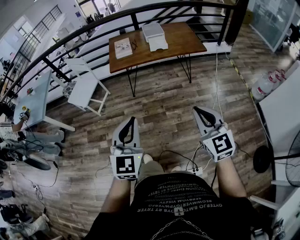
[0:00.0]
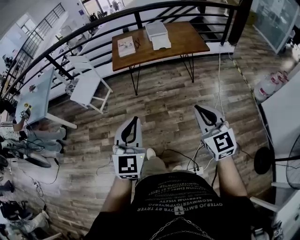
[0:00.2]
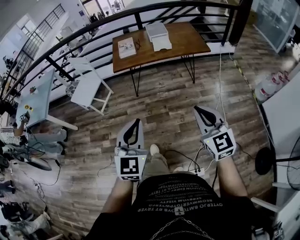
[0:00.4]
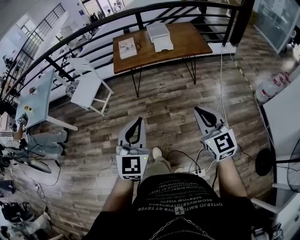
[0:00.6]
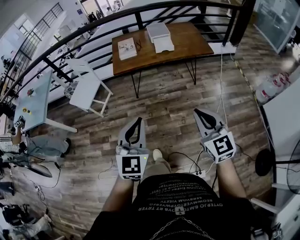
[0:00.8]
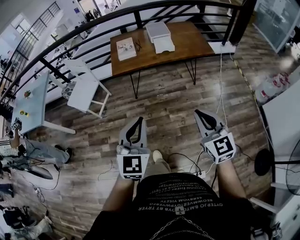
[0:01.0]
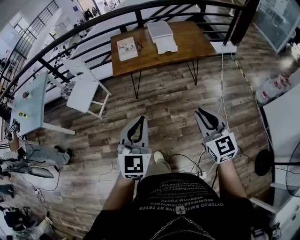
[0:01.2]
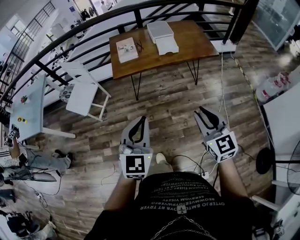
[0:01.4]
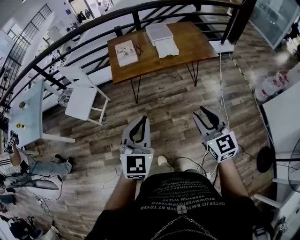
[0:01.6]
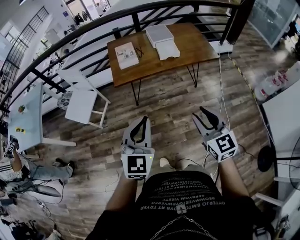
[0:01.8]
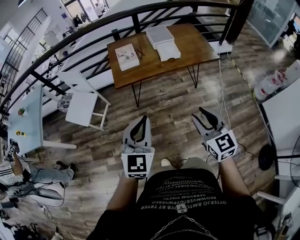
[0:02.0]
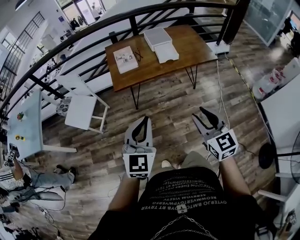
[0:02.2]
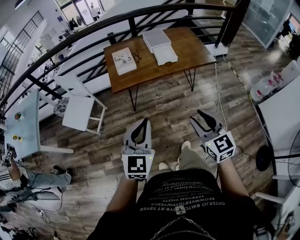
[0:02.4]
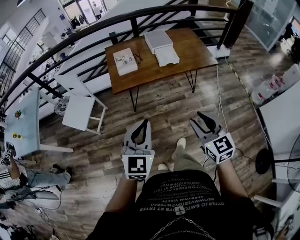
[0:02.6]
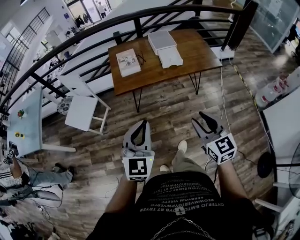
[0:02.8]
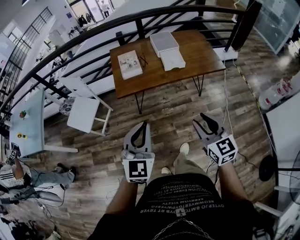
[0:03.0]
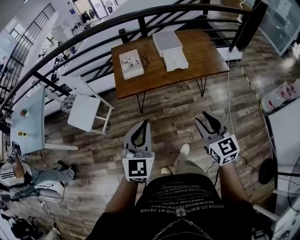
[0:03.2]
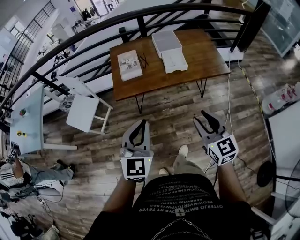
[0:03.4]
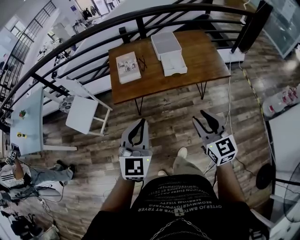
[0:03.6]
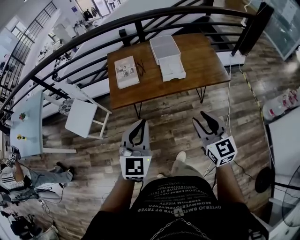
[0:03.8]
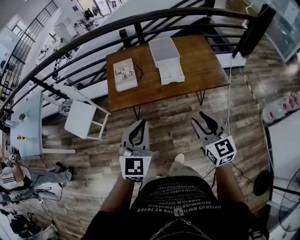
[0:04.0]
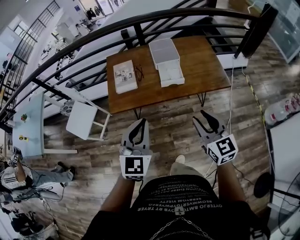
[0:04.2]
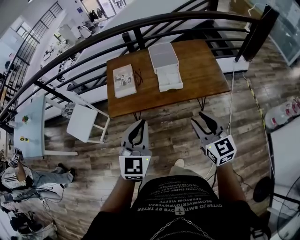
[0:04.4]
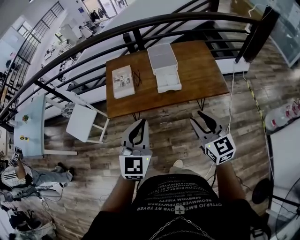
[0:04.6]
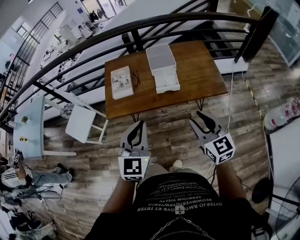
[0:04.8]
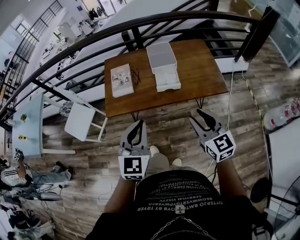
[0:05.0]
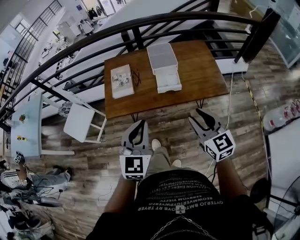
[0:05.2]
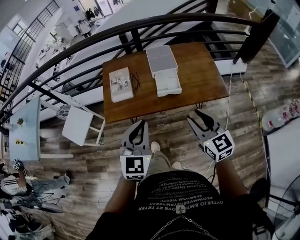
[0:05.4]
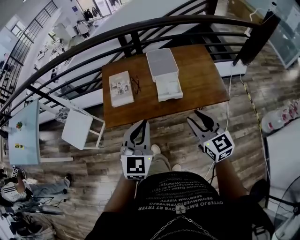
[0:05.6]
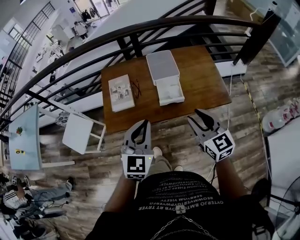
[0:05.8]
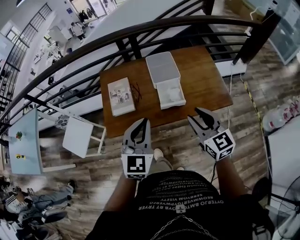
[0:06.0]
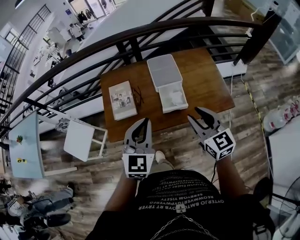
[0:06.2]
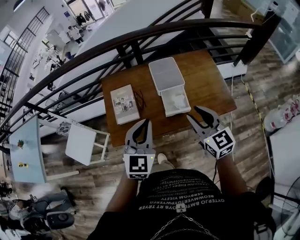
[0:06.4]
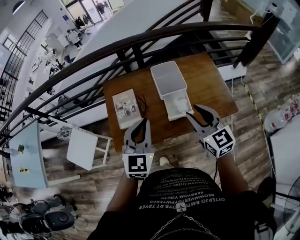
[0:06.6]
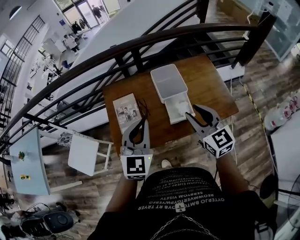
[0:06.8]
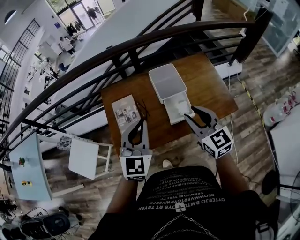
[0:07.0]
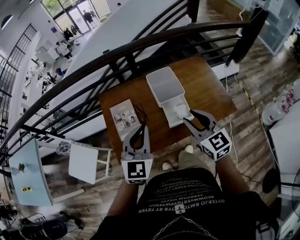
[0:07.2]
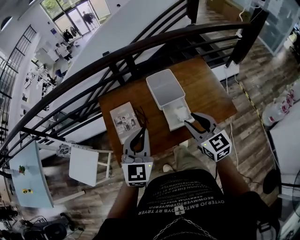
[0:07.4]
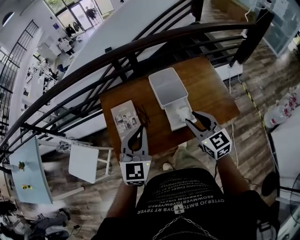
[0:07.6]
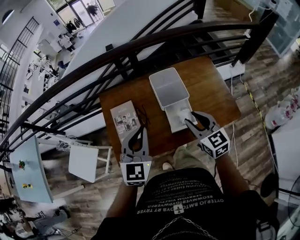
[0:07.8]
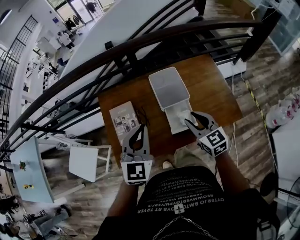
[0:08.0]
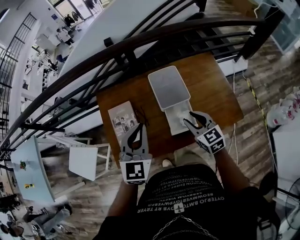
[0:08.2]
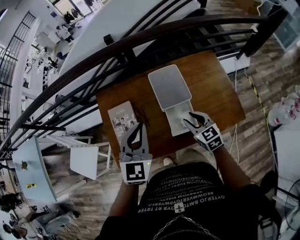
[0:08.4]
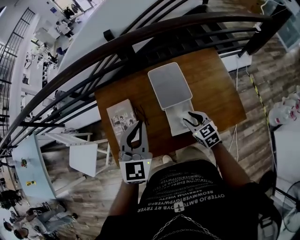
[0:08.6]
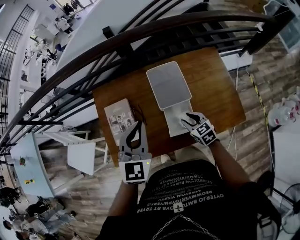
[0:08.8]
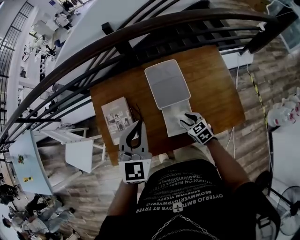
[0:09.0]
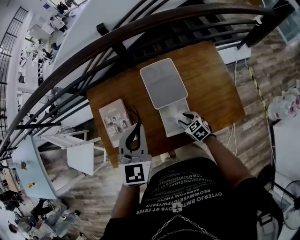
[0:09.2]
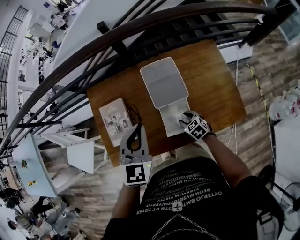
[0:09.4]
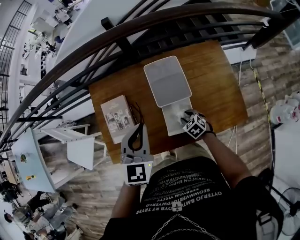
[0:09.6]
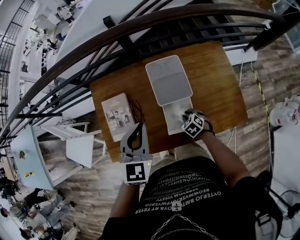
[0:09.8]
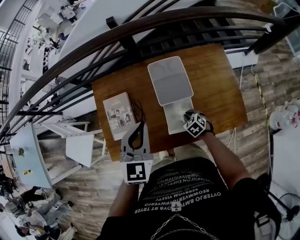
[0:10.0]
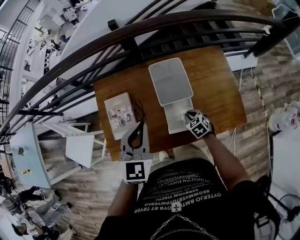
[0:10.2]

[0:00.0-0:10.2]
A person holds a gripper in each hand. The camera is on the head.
0:00.0 to 0:01.4: Both grippers travel together forward, roughly 20 cm.
0:01.4 to 0:03.0: The two grippers go approximately 15 cm forward.
0:03.0 to 0:04.4: Both grippers travel together forward and to the right, about 25 cm.
0:04.4 to 0:05.8: The grippers both shift forward by roughly 15 cm.
0:05.8 to 0:07.2: The left gripper heads forward, covering roughly 15 cm, while the right gripper is displaced forward and to the left by approximately 15 cm.
0:07.2 to 0:08.8: The left gripper shifts approximately 15 cm forward. The right gripper heads downward and forward, covering approximately 30 cm, and rotates approximately 30 degrees.
0:08.8 to 0:10.2: The right gripper travels downward by about 10 cm, and closes.

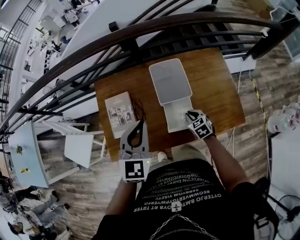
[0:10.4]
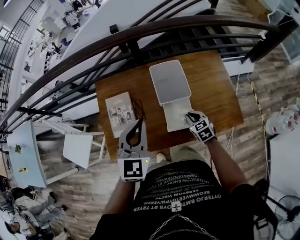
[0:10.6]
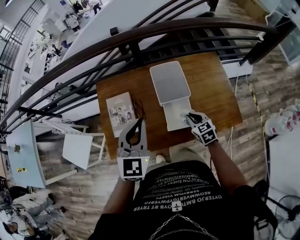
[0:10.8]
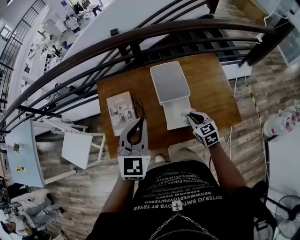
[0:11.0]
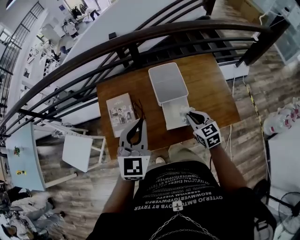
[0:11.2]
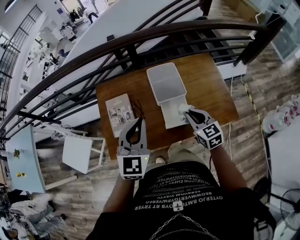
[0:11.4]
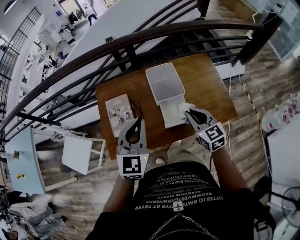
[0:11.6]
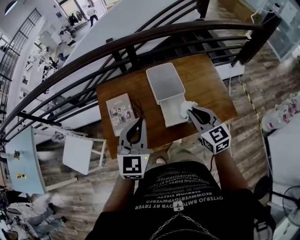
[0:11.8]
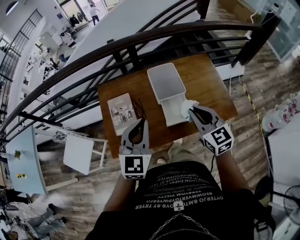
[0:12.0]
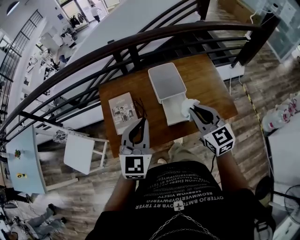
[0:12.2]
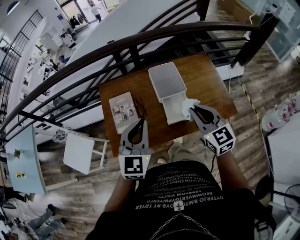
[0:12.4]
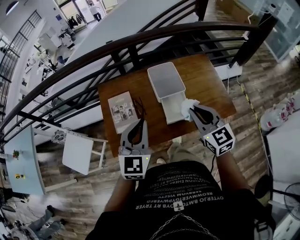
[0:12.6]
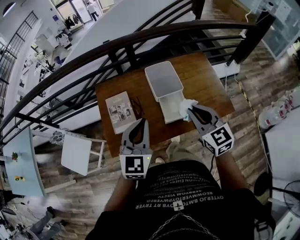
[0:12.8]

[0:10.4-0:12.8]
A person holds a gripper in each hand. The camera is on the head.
0:10.4 to 0:11.6: The right gripper is displaced upward by about 25 cm, and turns by roughly 30 degrees. Meanwhile the left gripper is displaced backward by some 10 cm.
0:11.6 to 0:12.8: The right gripper moves upward and backward, about 10 cm.

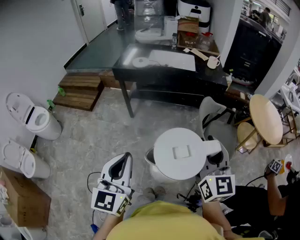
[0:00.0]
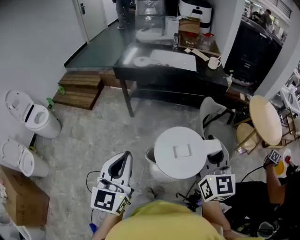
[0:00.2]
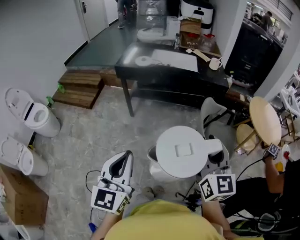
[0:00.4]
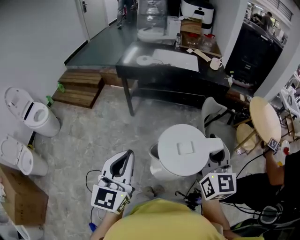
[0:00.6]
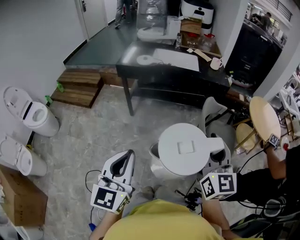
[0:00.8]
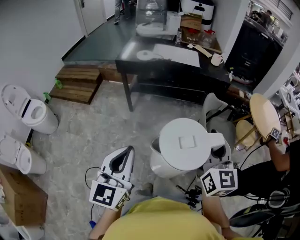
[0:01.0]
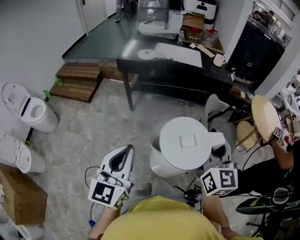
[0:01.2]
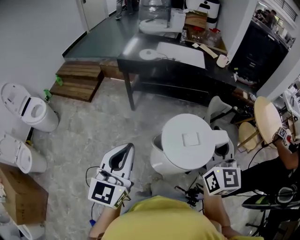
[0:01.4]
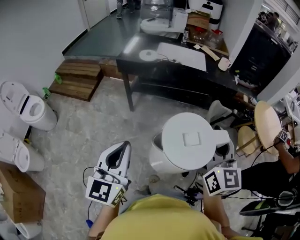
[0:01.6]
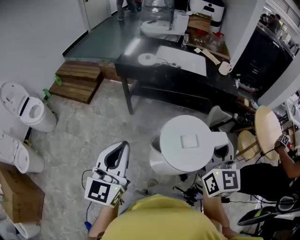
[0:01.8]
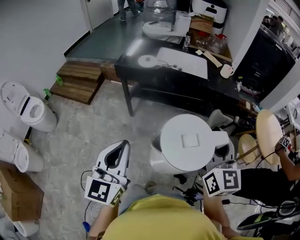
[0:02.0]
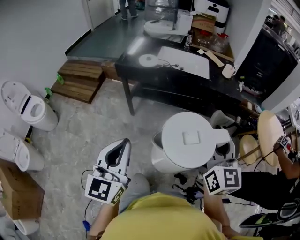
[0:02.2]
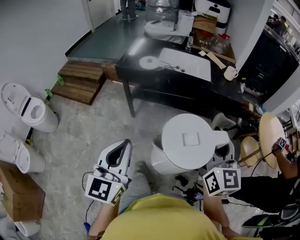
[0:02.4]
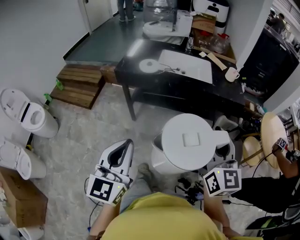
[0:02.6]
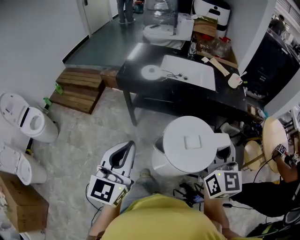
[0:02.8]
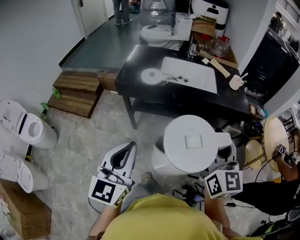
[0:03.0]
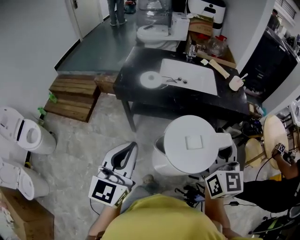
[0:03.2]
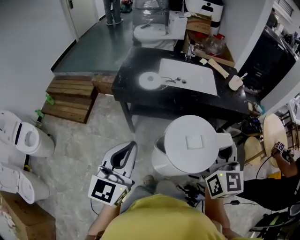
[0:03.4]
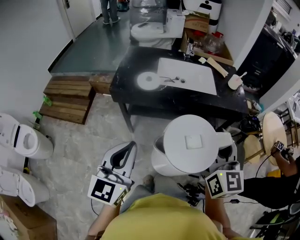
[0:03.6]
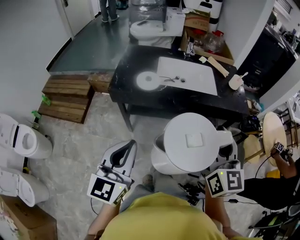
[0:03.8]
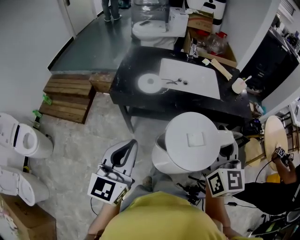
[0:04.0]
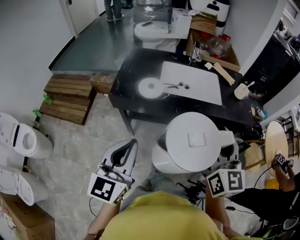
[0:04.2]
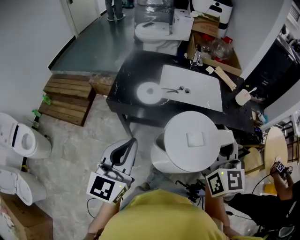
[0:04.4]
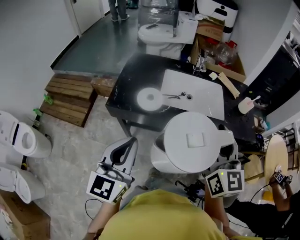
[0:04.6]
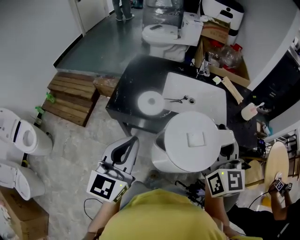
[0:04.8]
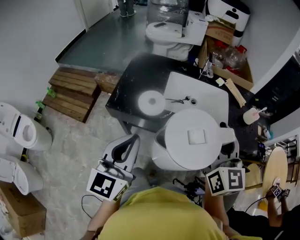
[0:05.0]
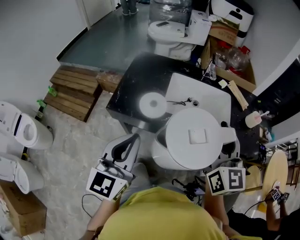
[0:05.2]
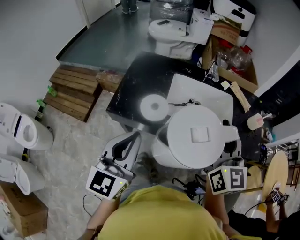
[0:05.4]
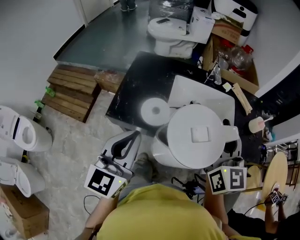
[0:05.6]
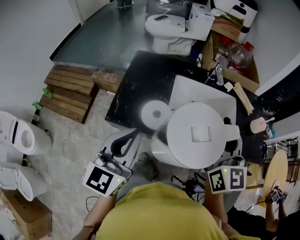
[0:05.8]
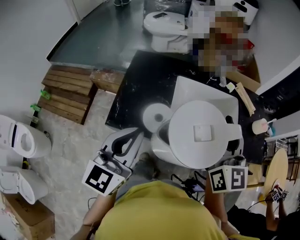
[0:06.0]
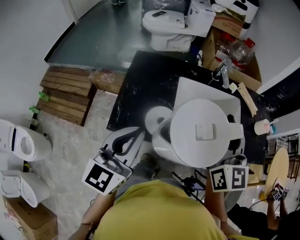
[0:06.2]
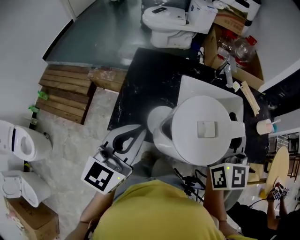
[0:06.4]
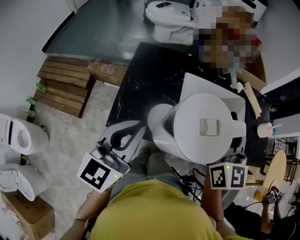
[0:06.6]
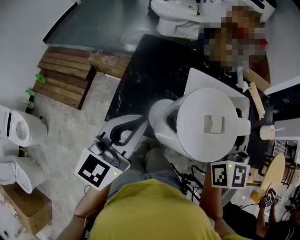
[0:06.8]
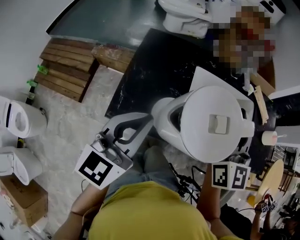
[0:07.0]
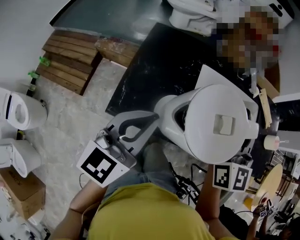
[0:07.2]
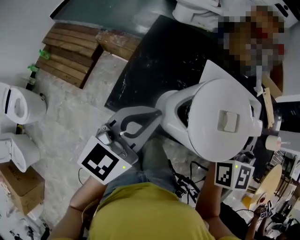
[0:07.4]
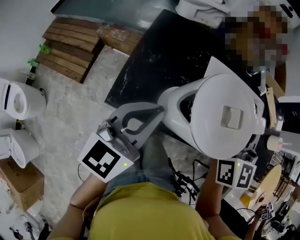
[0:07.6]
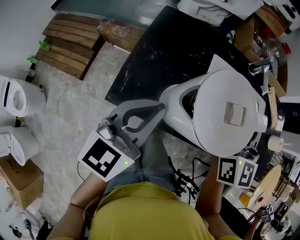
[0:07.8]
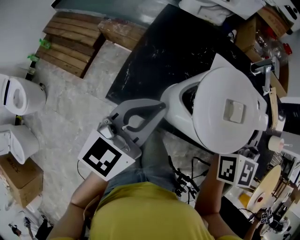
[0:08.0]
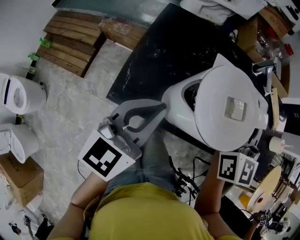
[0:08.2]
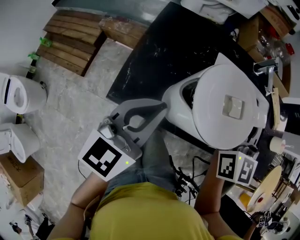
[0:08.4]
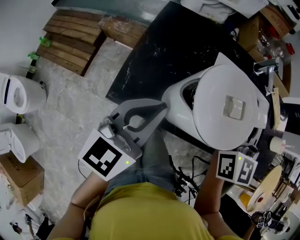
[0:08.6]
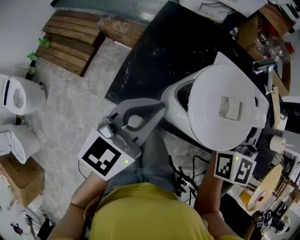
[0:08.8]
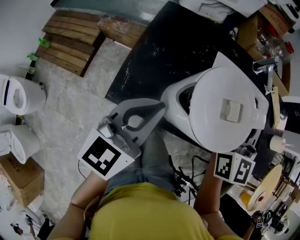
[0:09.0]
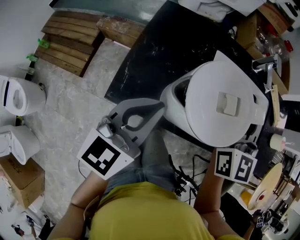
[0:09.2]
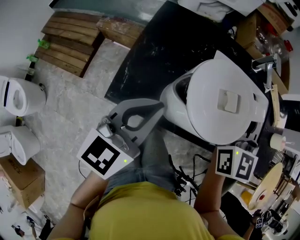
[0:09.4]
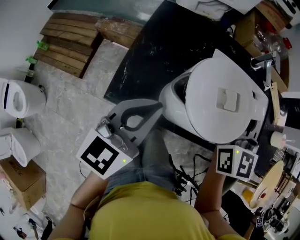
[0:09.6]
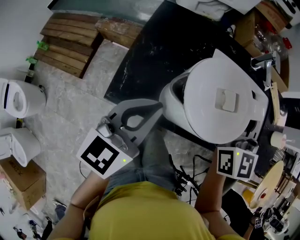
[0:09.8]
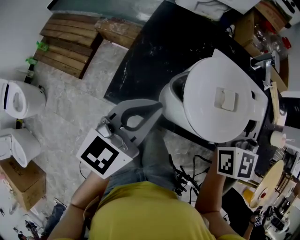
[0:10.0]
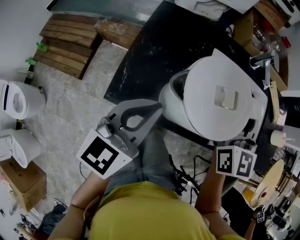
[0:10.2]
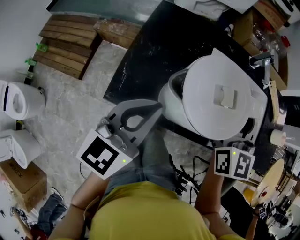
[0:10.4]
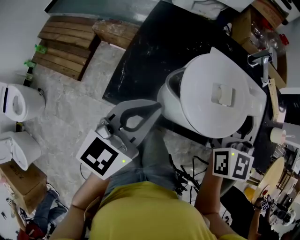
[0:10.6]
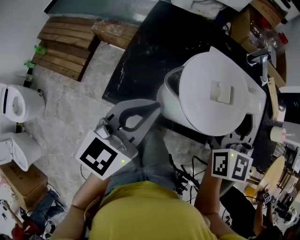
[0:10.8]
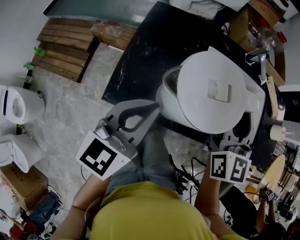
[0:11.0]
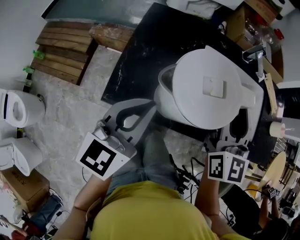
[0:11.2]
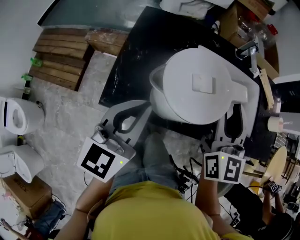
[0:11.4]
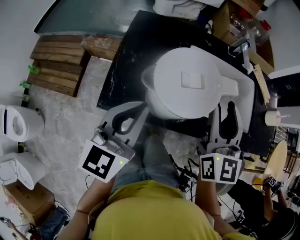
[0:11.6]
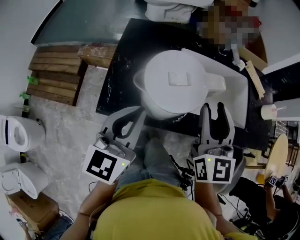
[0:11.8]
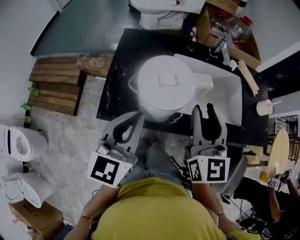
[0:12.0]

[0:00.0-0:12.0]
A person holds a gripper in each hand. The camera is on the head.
0:00.0 to 0:01.6: Both grippers move forward and to the left, approximately 10 cm.
0:01.6 to 0:03.0: Both grippers travel together forward, approximately 20 cm.
0:03.0 to 0:04.4: Both grippers travel together forward, some 20 cm.
0:04.4 to 0:06.0: The two grippers go roughly 25 cm forward.
0:06.0 to 0:07.6: The left gripper goes roughly 10 cm downward and forward. Meanwhile the right gripper is displaced forward, downward and to the left by some 15 cm.
0:07.6 to 0:10.4: The grippers stay close to where they were, moving slightly.
0:10.4 to 0:12.0: The left gripper is displaced upward by approximately 5 cm; the right gripper moves backward, some 10 cm.
